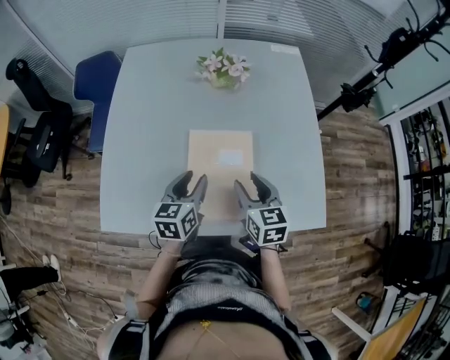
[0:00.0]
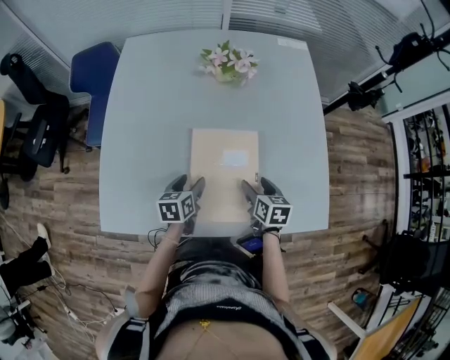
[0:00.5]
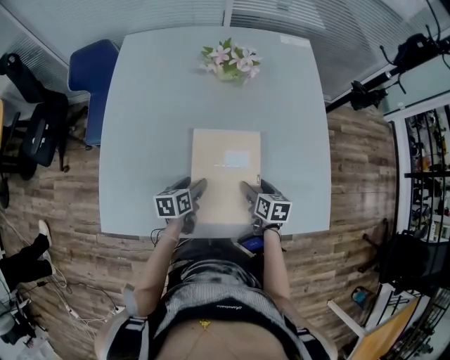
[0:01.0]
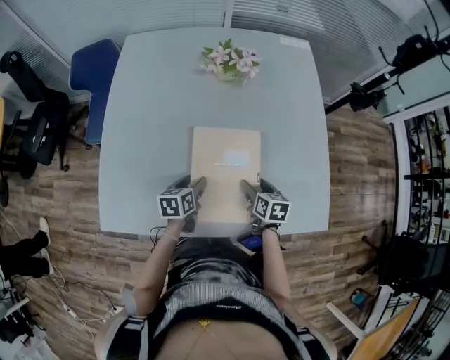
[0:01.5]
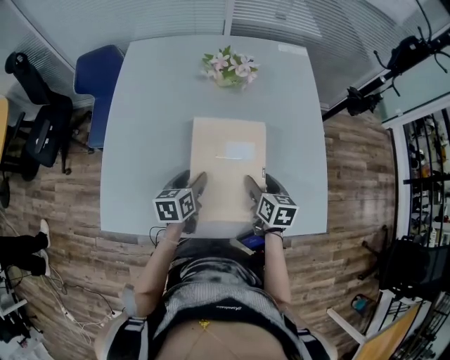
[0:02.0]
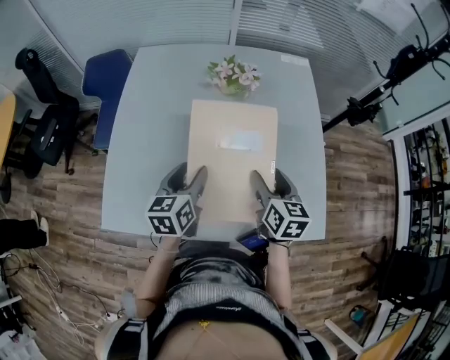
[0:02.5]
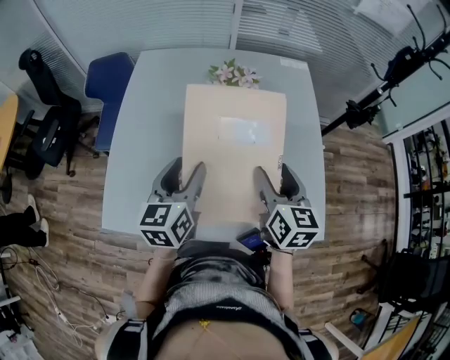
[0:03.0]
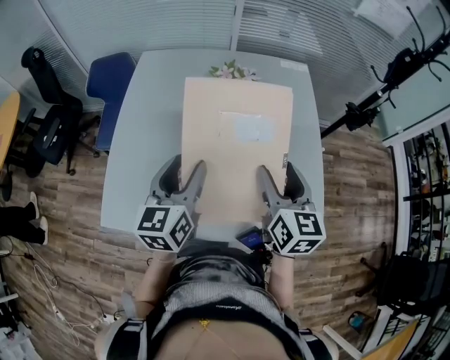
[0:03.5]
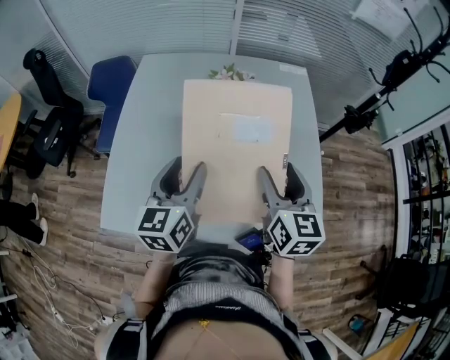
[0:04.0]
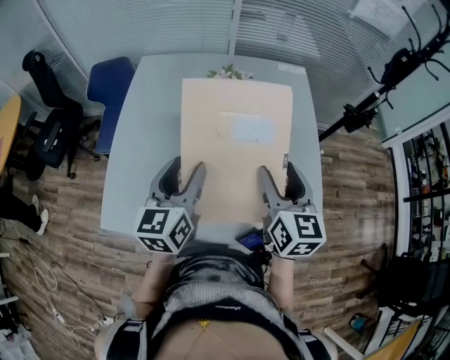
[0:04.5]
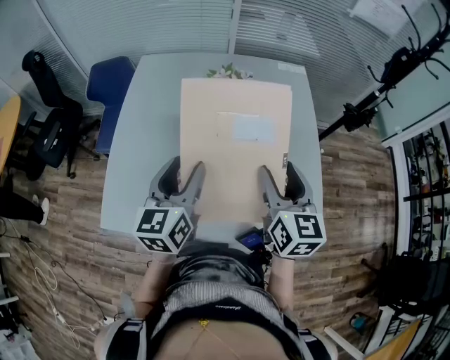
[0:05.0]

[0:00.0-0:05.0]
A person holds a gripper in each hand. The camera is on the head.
0:00.0 to 0:02.5: The left gripper moves about 15 cm downward and comes back; the right gripper reaches some 15 cm downward, then returns.
0:02.5 to 0:05.0: The two grippers go about 10 cm upward.

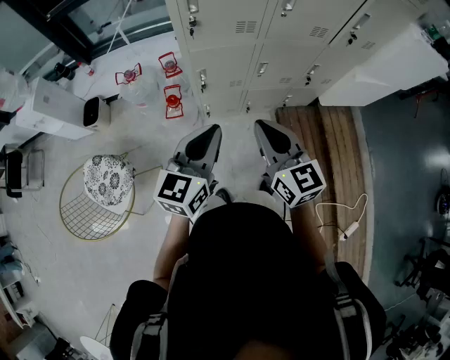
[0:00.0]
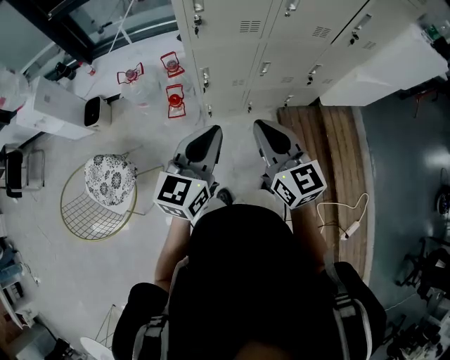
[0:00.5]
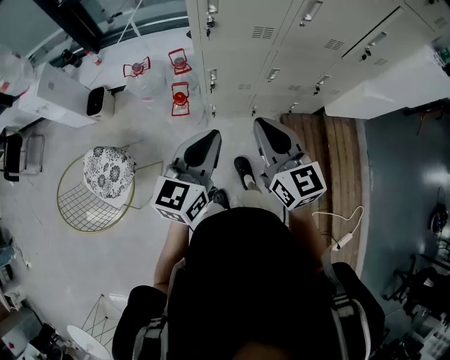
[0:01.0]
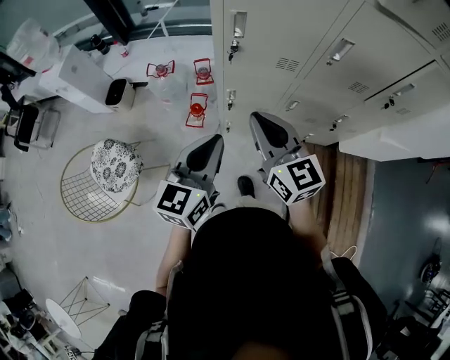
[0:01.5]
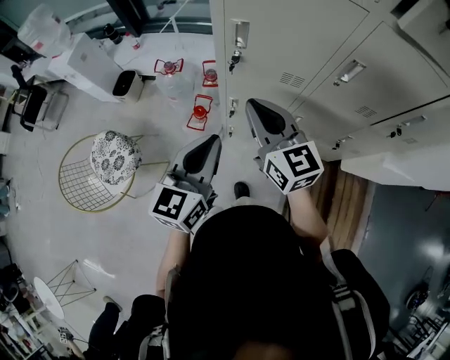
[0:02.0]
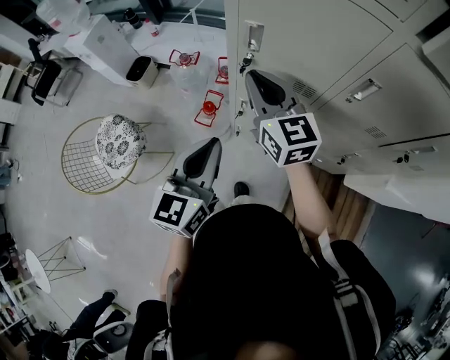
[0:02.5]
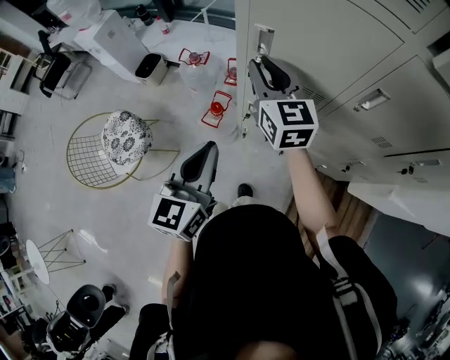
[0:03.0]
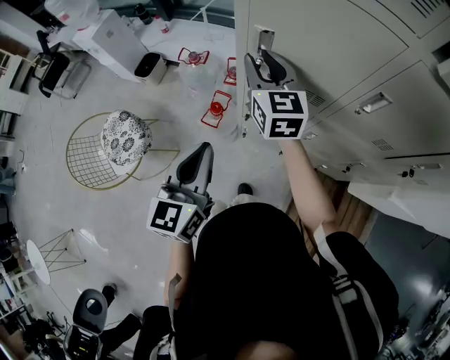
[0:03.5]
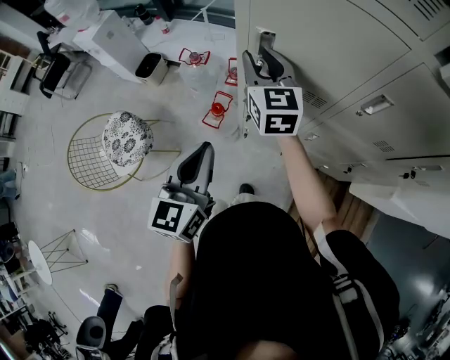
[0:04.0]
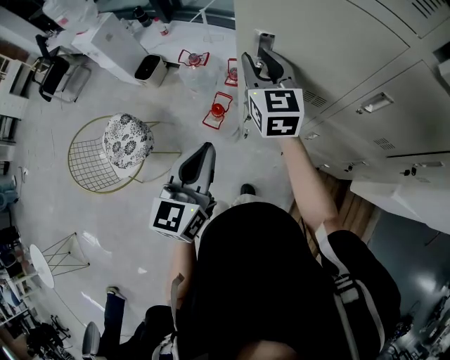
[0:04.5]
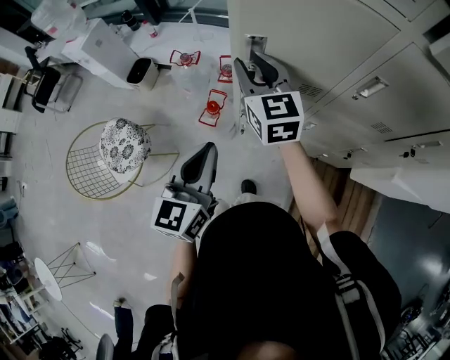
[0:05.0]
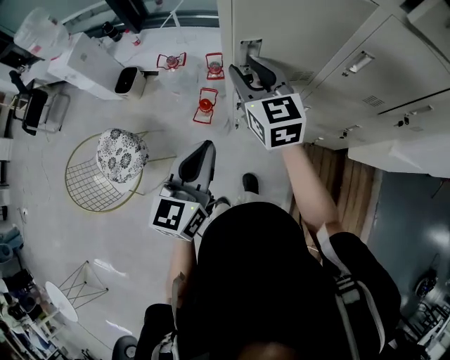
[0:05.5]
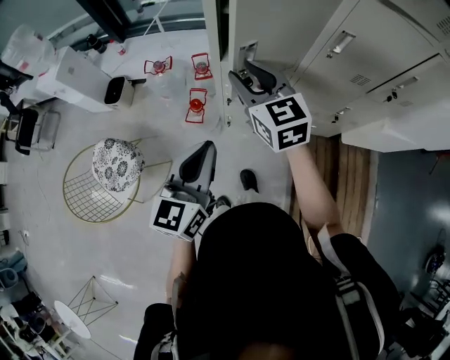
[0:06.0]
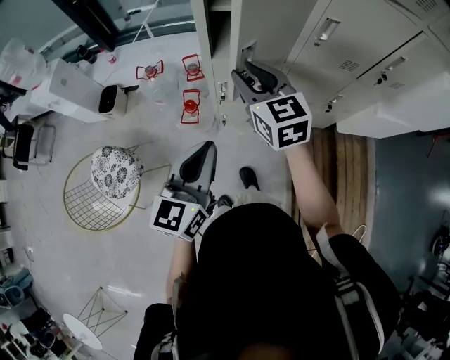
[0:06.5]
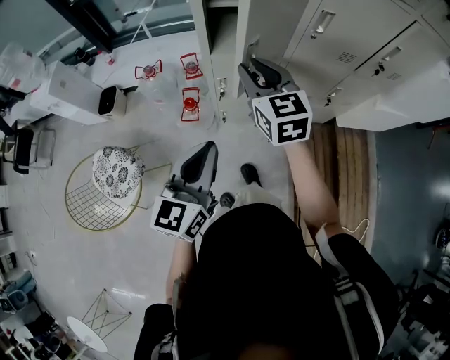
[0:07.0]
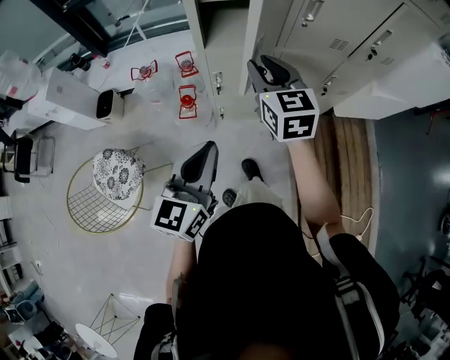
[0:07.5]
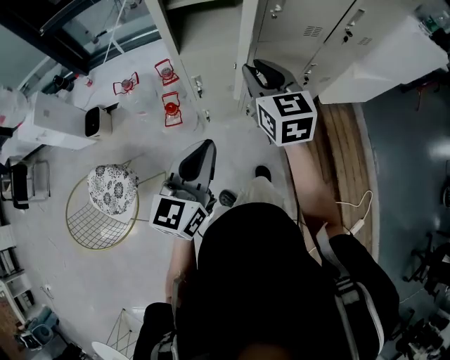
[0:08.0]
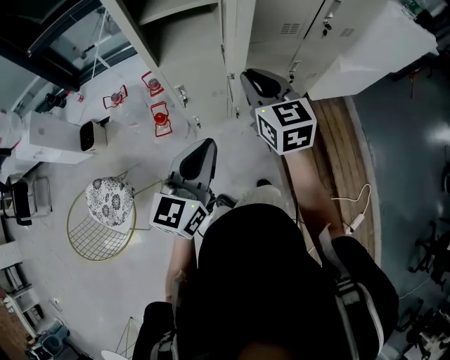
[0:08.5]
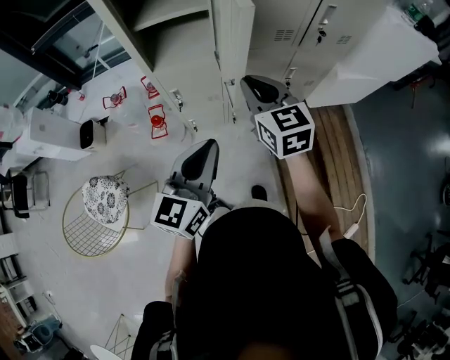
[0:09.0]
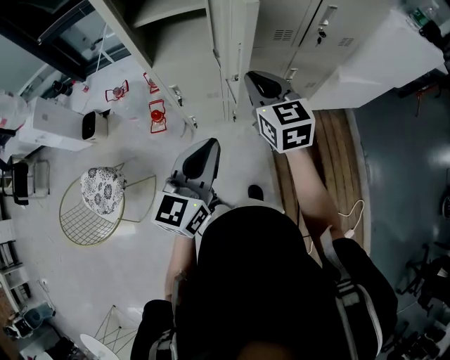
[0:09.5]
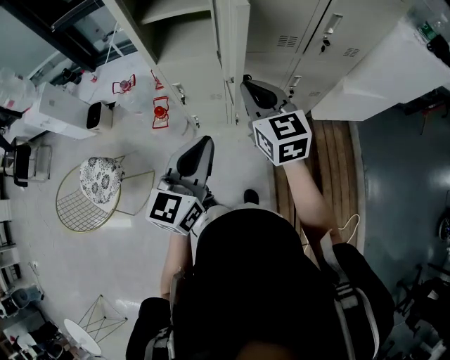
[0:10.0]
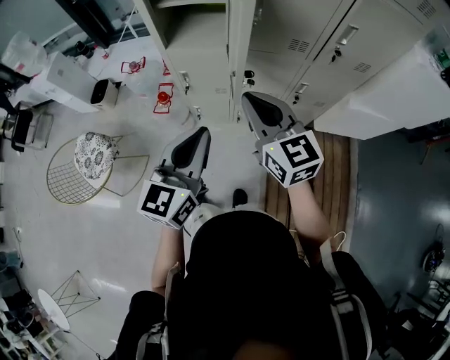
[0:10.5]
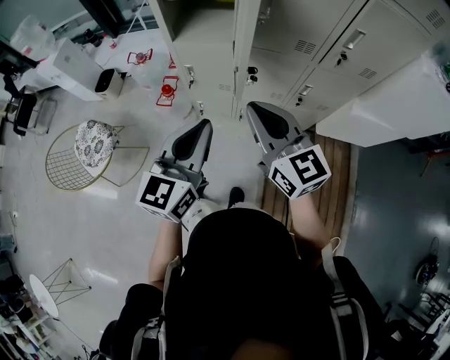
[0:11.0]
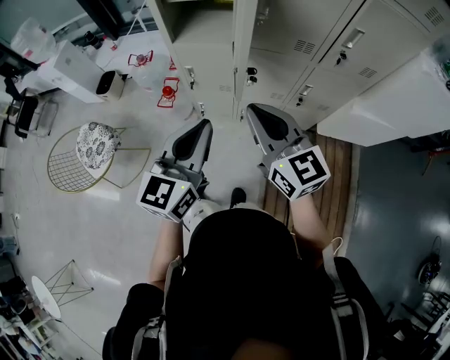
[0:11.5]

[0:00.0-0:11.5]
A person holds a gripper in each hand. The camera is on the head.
0:00.0 to 0:02.0: The right gripper shifts approximately 20 cm forward, and changes its angle by roughly 20 degrees, while the left gripper is displaced forward by roughly 10 cm, and changes its angle by about 20 degrees.
0:02.0 to 0:04.0: The right gripper shifts roughly 15 cm forward, and opens its fingers.
0:04.0 to 0:06.0: The right gripper goes some 15 cm backward; the left gripper travels backward by some 5 cm, and swivels about 20 degrees.
0:06.0 to 0:07.5: The left gripper moves backward, roughly 5 cm. The right gripper travels to the right and backward by some 10 cm, and swivels some 20 degrees.
0:07.5 to 0:09.5: The two grippers go approximately 20 cm to the right. The right gripper closes its fingers.
0:09.5 to 0:11.5: The right gripper moves backward, about 10 cm, and swivels approximately 30 degrees.

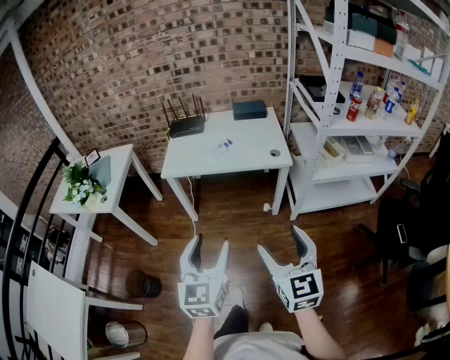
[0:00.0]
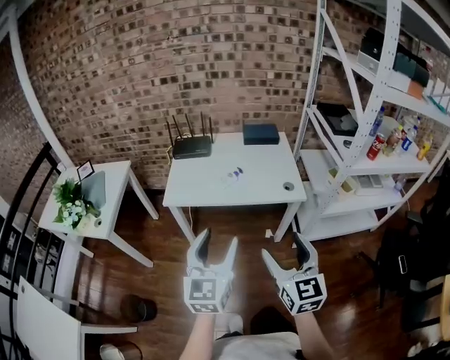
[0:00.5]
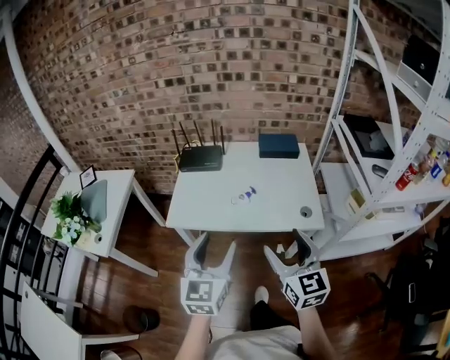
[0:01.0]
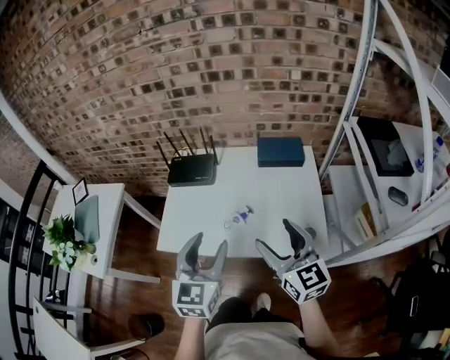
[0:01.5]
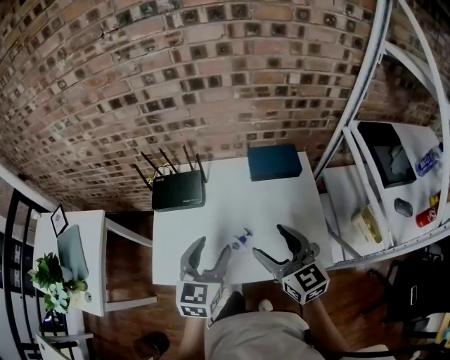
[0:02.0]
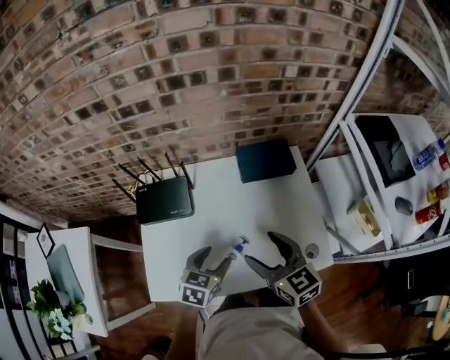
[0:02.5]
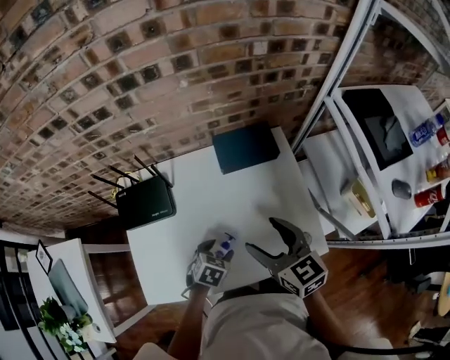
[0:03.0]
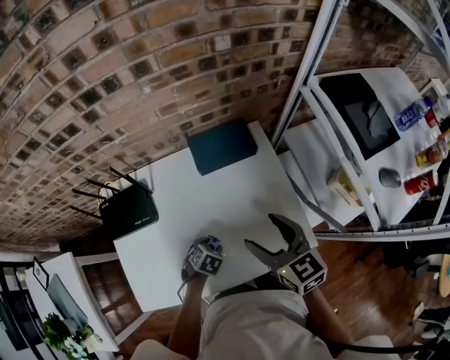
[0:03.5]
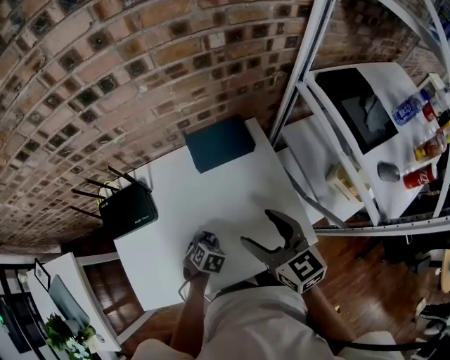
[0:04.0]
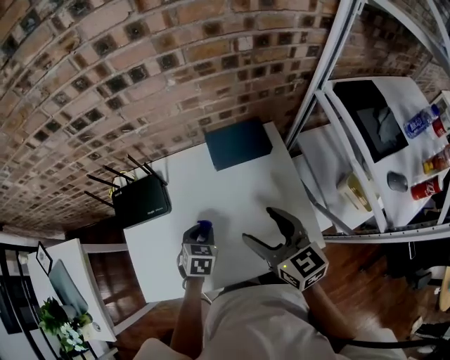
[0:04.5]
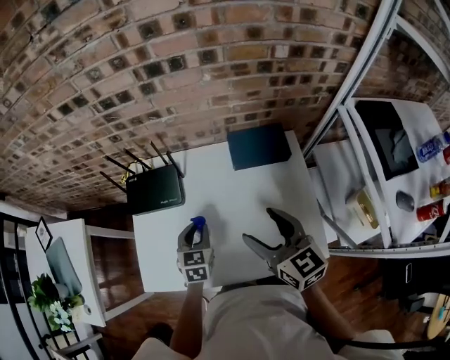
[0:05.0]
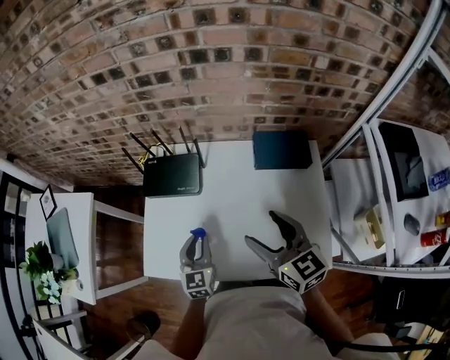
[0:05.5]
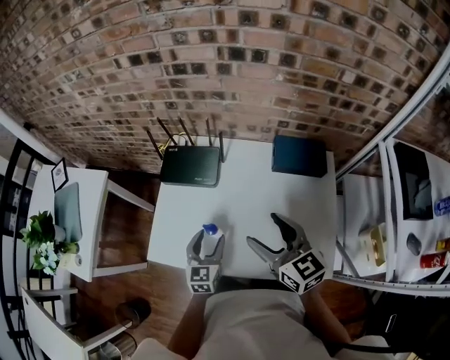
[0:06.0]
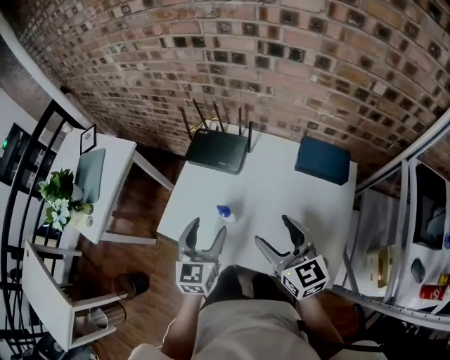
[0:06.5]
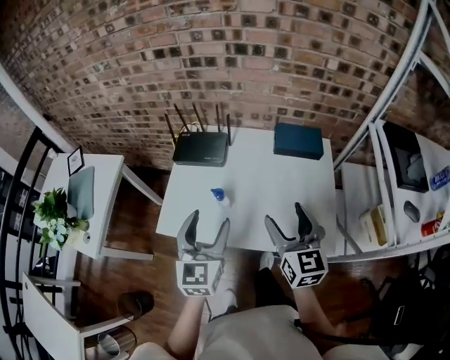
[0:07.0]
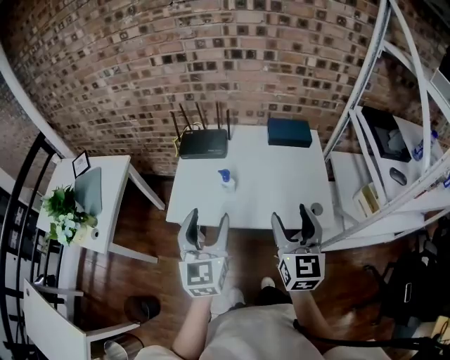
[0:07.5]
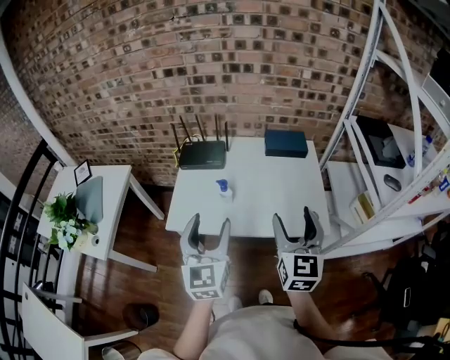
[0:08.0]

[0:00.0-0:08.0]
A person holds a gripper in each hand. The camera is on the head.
0:00.0 to 0:02.0: Both grippers are carried forward, approximately 70 cm.
0:02.0 to 0:04.0: The left gripper goes some 30 cm downward, tilts its fingers approximately 50 degrees downward, and closes up. The right gripper moves approximately 15 cm.
0:04.0 to 0:06.0: The right gripper moves some 15 cm, and rotates about 30 degrees, while the left gripper shifts by some 20 cm, angles its fingers upward, by about 50 degrees, and opens its fingers.
0:06.0 to 0:08.0: The right gripper moves some 25 cm, and rotates about 40 degrees; the left gripper travels upward by roughly 25 cm, and rotates approximately 20 degrees.

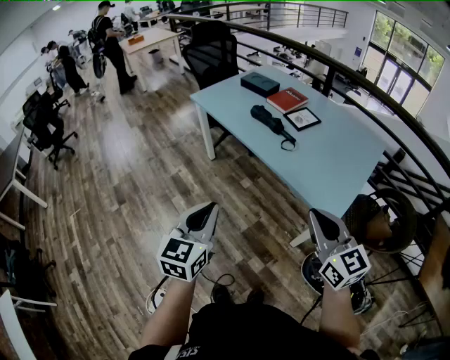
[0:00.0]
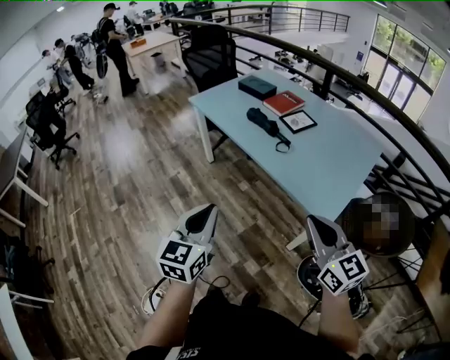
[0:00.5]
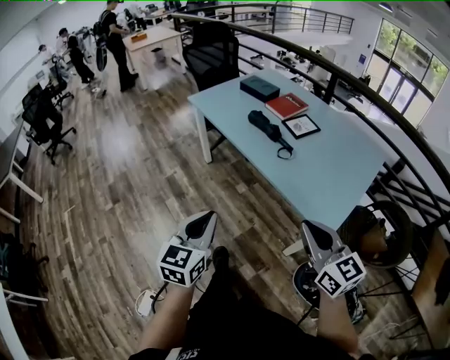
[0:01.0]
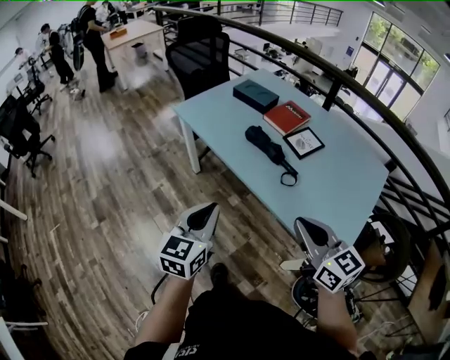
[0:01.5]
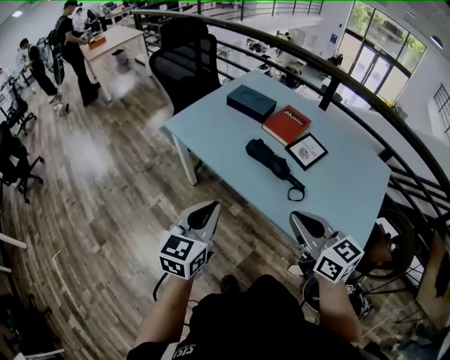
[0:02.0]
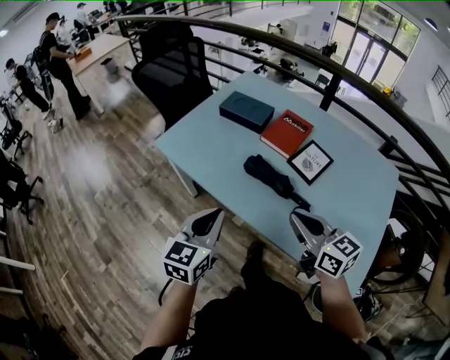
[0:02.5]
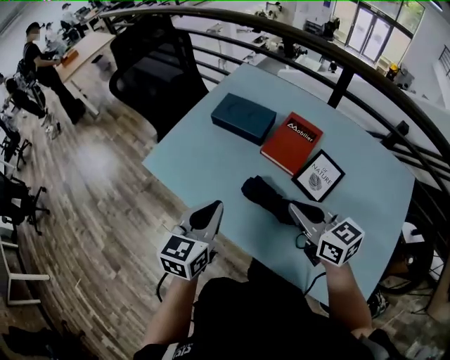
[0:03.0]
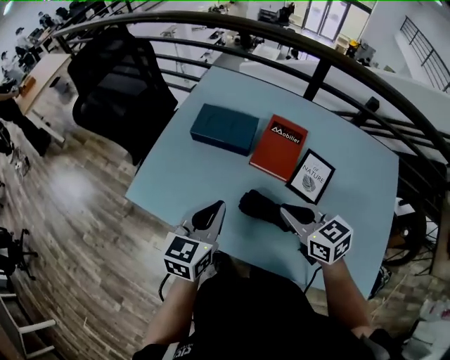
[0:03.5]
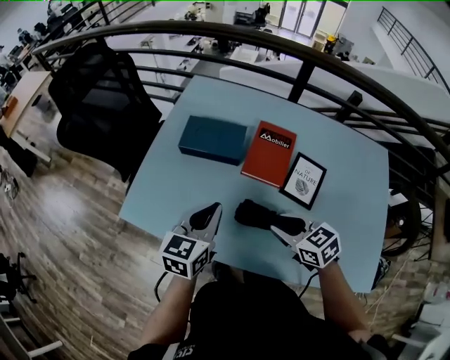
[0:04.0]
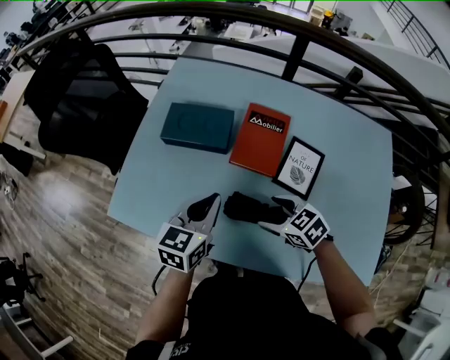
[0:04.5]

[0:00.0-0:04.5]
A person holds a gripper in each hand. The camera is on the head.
0:00.0 to 0:02.0: The grippers both shift forward by approximately 35 cm.
0:02.0 to 0:04.5: The right gripper goes about 40 cm forward and downward, tips its fingers downward by some 40 degrees, and opens up. The left gripper is displaced forward by approximately 40 cm, and swivels approximately 30 degrees.
